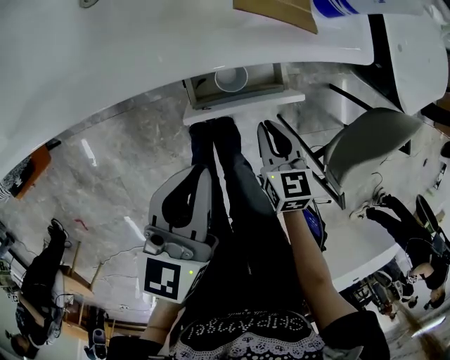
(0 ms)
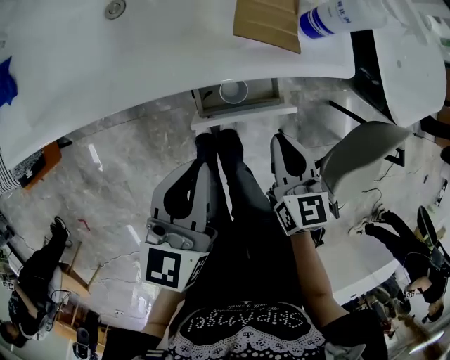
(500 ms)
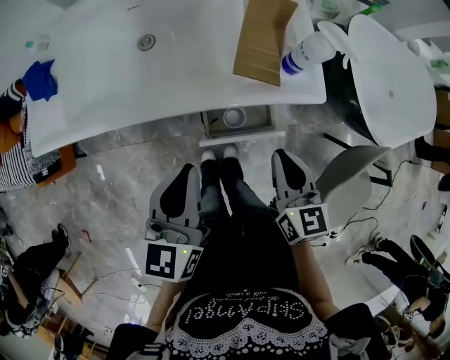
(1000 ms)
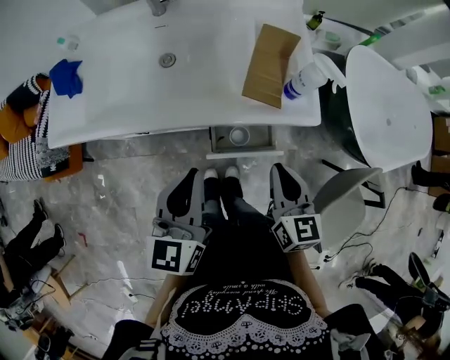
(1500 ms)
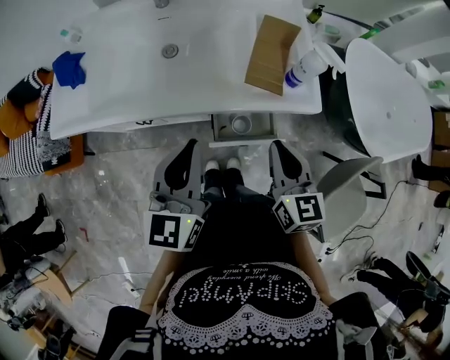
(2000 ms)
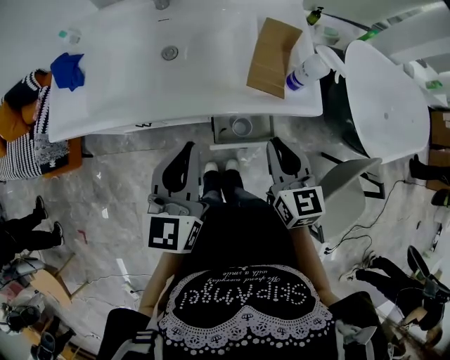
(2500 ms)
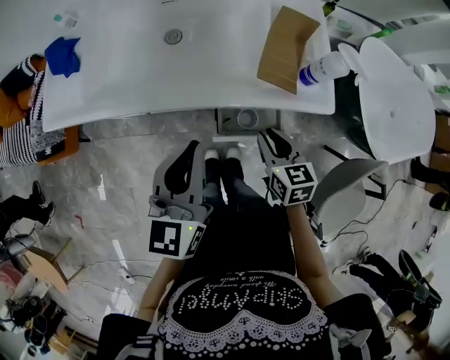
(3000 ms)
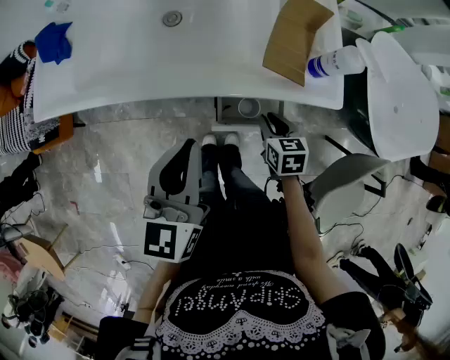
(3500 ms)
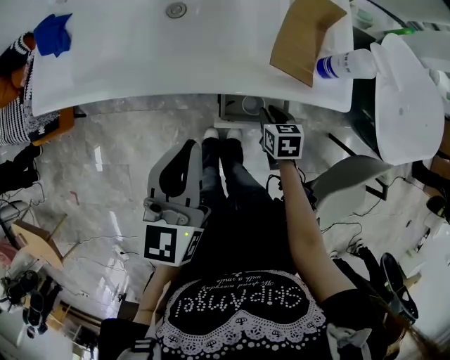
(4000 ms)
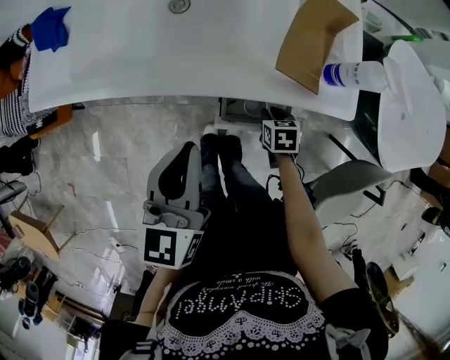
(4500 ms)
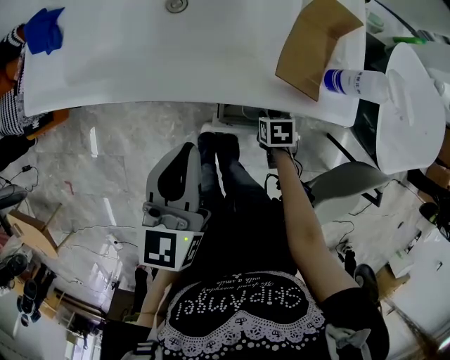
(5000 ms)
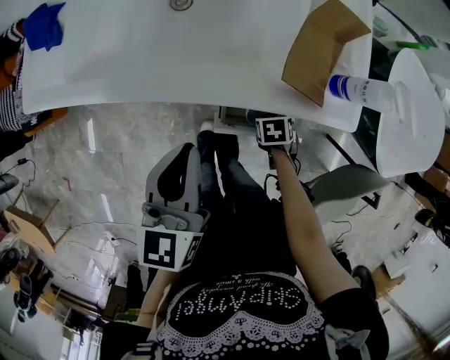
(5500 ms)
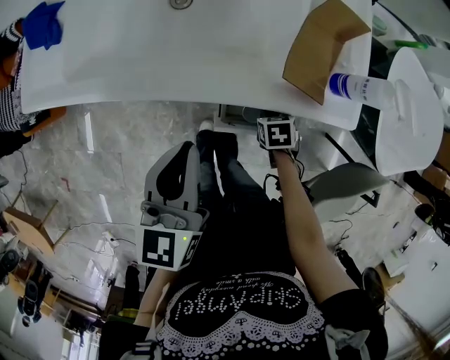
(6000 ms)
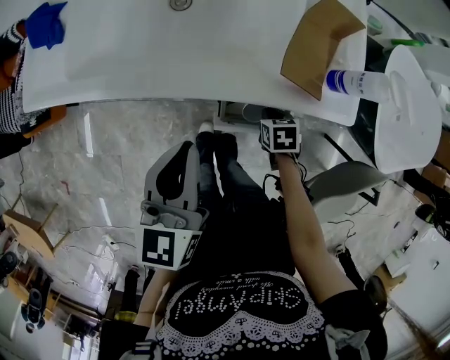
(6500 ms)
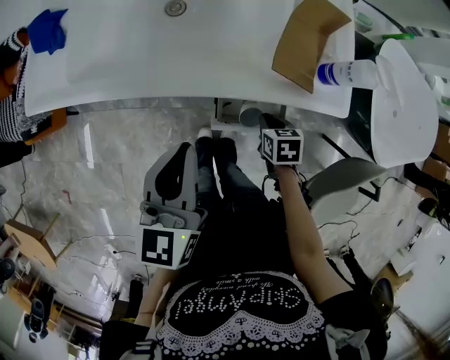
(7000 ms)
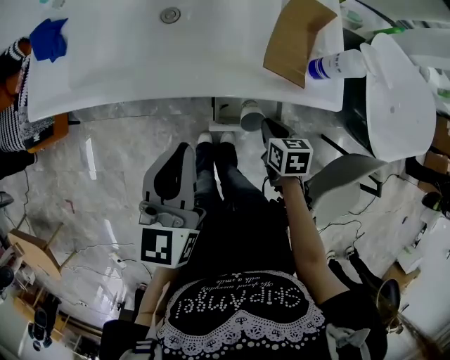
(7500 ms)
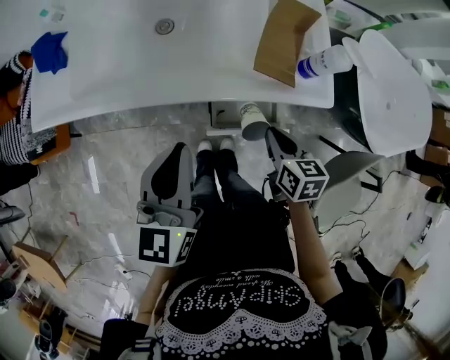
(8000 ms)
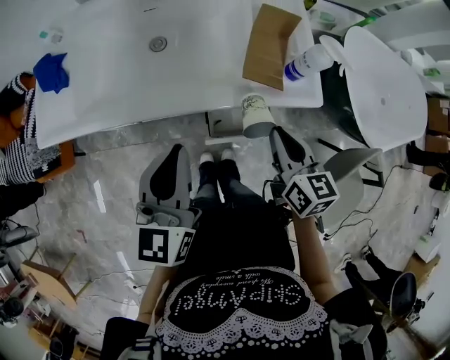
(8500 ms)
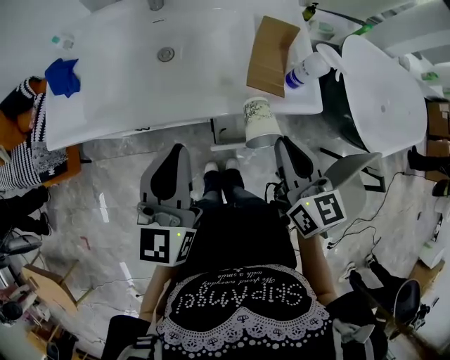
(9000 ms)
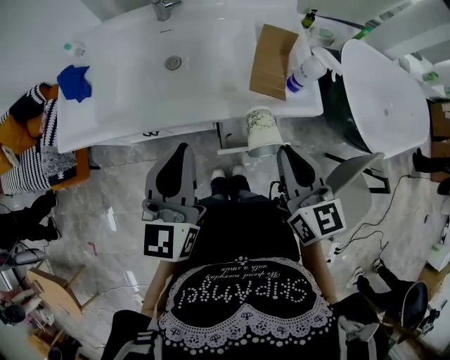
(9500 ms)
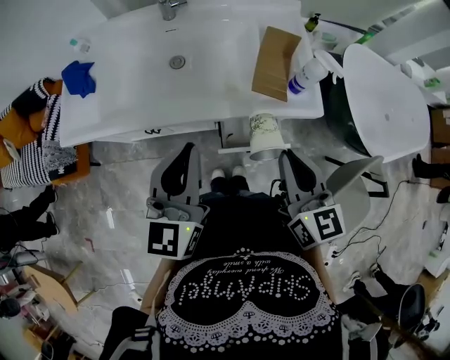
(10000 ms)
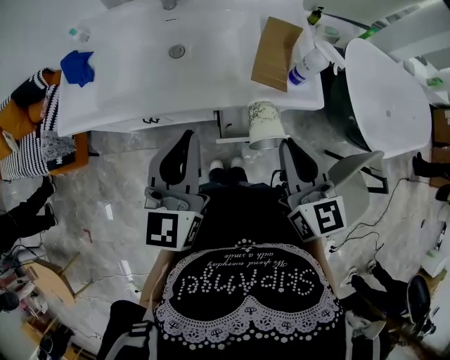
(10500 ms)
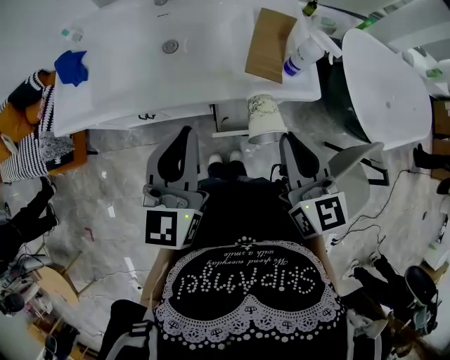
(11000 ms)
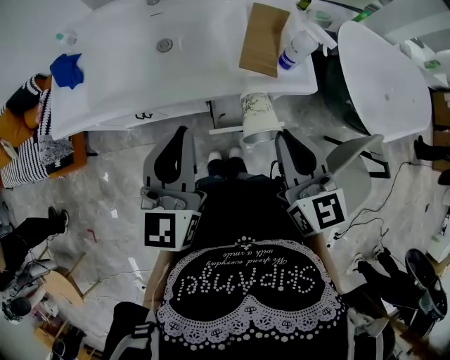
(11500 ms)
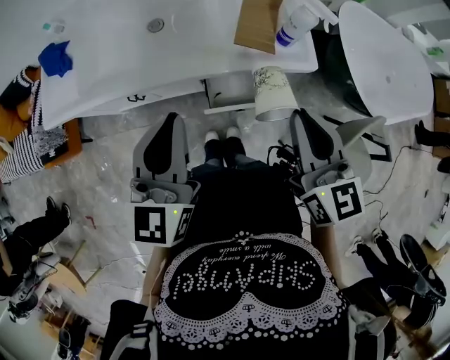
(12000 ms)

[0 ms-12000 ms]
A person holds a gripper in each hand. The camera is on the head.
0 ms to 2000 ms: The left gripper travels upward by approximately 15 cm, and swivels approximately 20 degrees. The right gripper goes approximately 30 cm upward, and turns by about 30 degrees.
2000 ms to 4000 ms: The right gripper is displaced downward by roughly 25 cm, and tilts its fingers approximately 40 degrees downward, while the left gripper goes approximately 5 cm downward.
6000 ms to 8000 ms: The right gripper travels upward by some 20 cm, and tips its fingers upward by about 30 degrees; the left gripper moves about 5 cm.
8000 ms to 10000 ms: The right gripper goes about 20 cm upward, and changes its angle by about 30 degrees. The left gripper is displaced upward by some 5 cm.
10000 ms to 12000 ms: The grippers make only small movements.

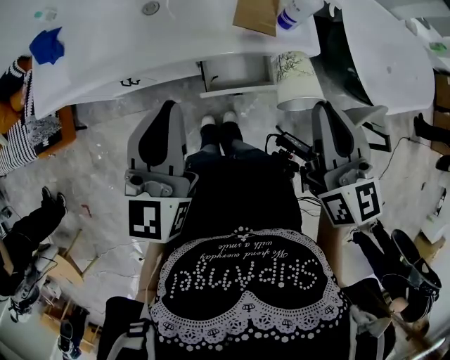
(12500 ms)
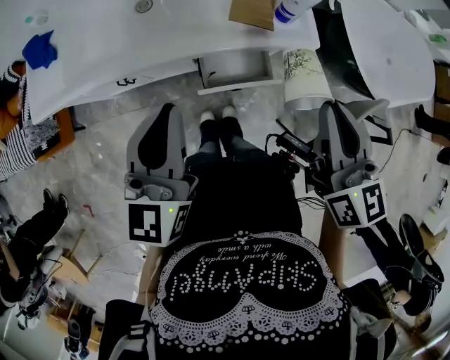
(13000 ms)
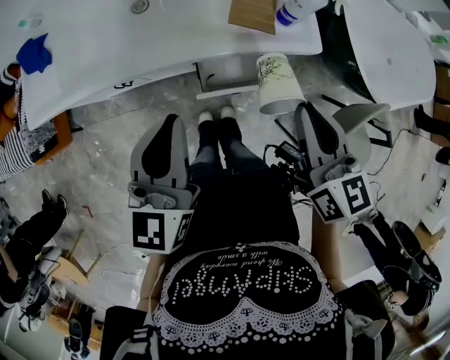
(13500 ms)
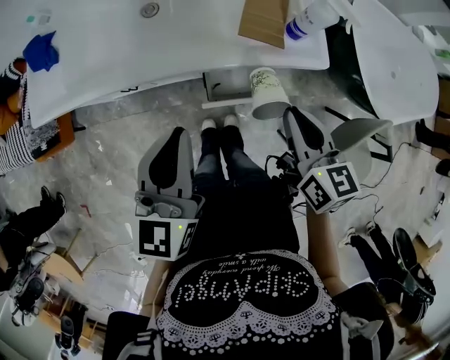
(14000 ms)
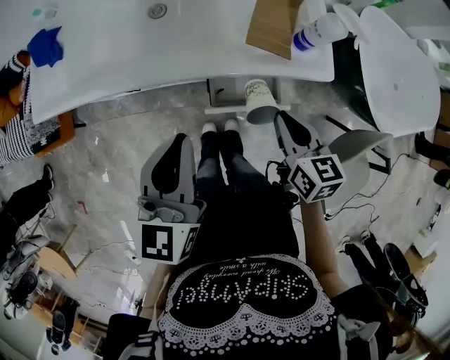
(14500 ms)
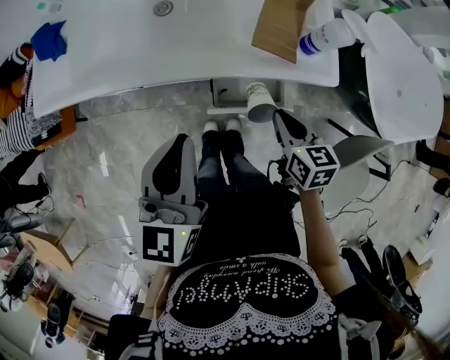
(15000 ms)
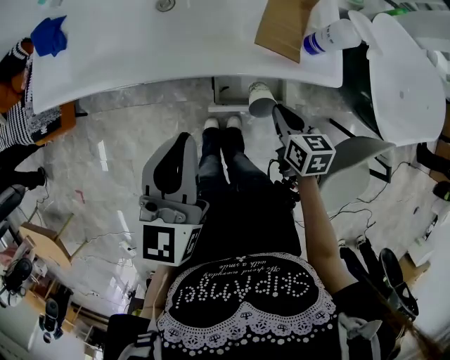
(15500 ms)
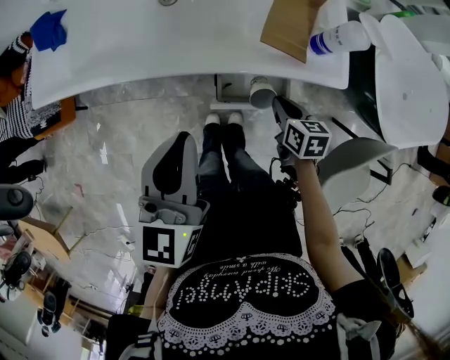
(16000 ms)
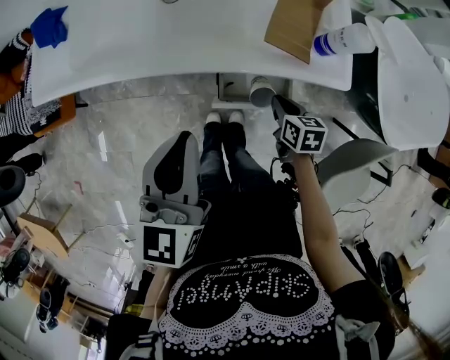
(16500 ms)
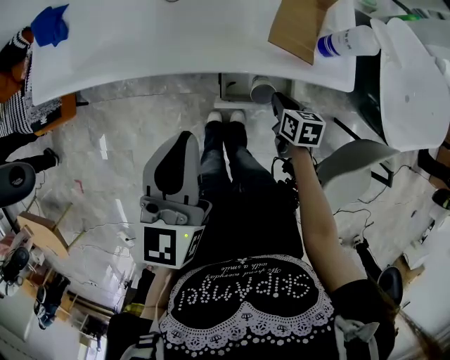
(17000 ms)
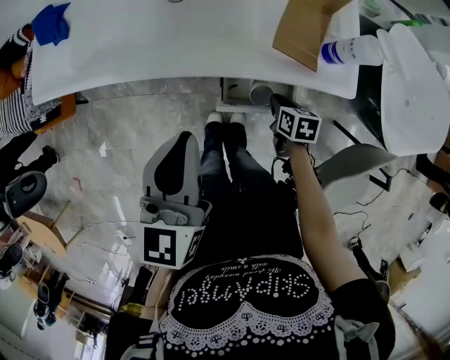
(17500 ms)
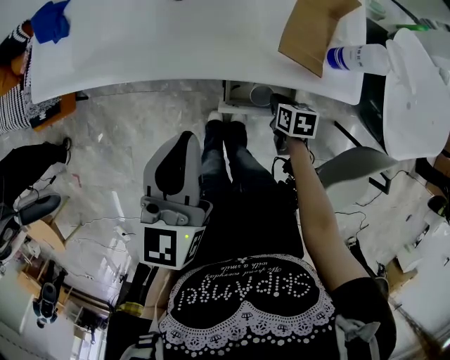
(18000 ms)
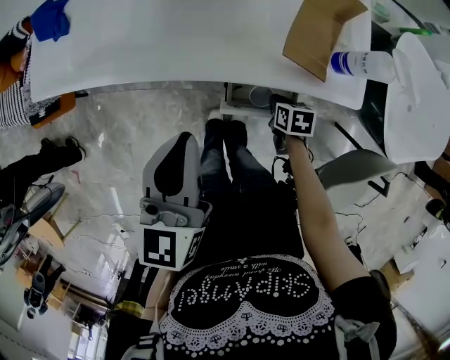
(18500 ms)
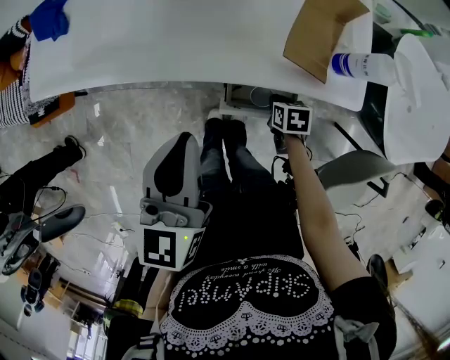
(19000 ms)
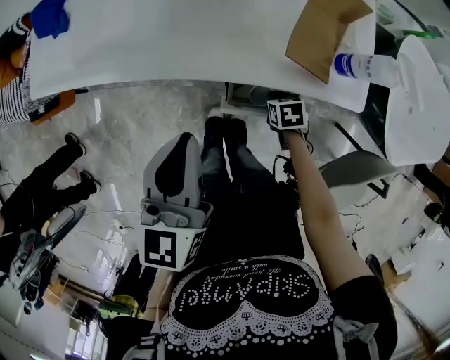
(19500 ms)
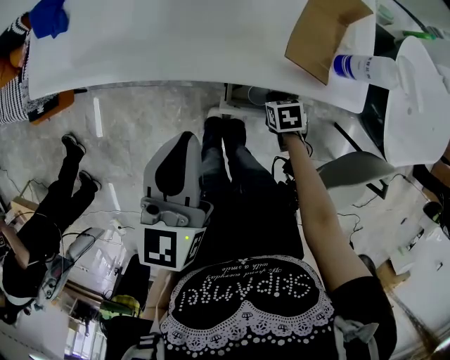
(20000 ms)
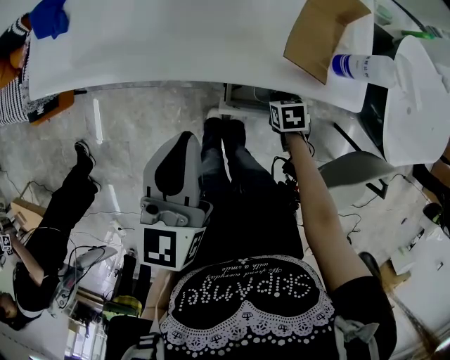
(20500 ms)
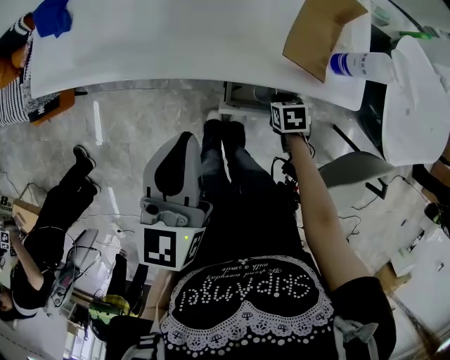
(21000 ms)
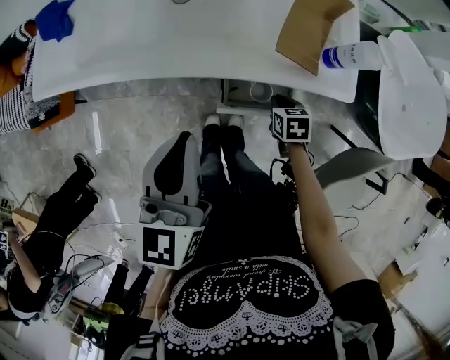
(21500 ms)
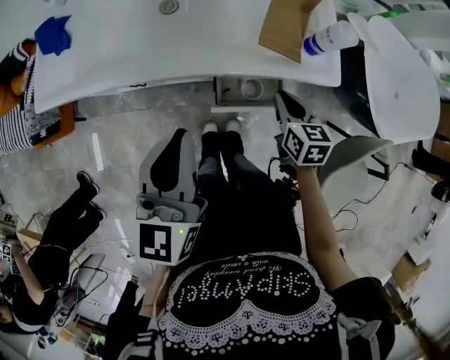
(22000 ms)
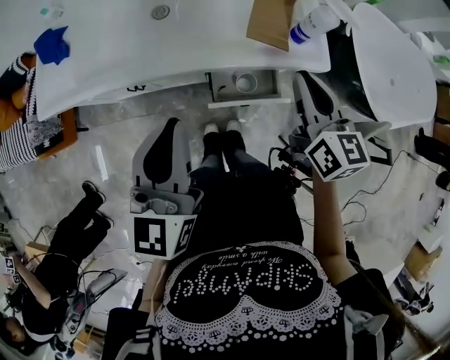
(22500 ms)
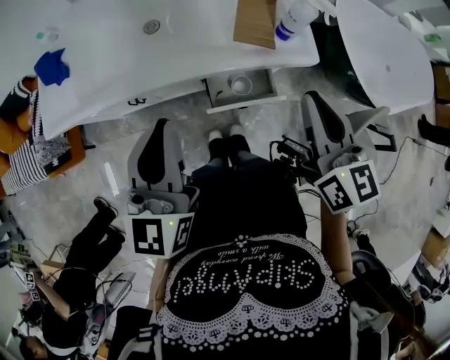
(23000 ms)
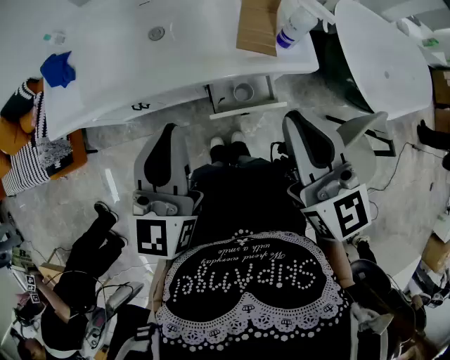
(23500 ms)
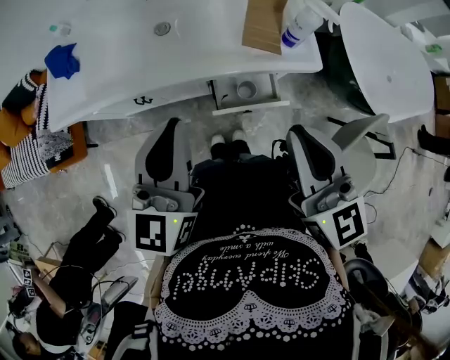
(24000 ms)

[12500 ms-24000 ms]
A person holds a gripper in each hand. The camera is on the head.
12500 ms to 14500 ms: The right gripper heads downward, covering about 15 cm, and changes its angle by about 20 degrees.
14500 ms to 16500 ms: The right gripper travels downward by about 15 cm.
16500 ms to 18500 ms: The right gripper goes some 5 cm downward.
18500 ms to 20000 ms: The grippers stay close to where they were, moving slightly.
20000 ms to 22000 ms: The left gripper shifts by approximately 5 cm. Meanwhile the right gripper travels upward by about 20 cm, and tilts its fingers roughly 30 degrees upward.
22000 ms to 24000 ms: The left gripper moves upward, approximately 5 cm. The right gripper is displaced upward and backward by roughly 30 cm, and tips its fingers upward by some 30 degrees.

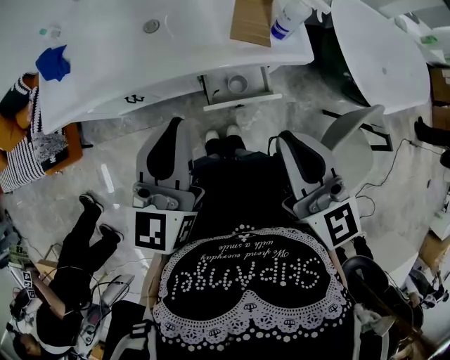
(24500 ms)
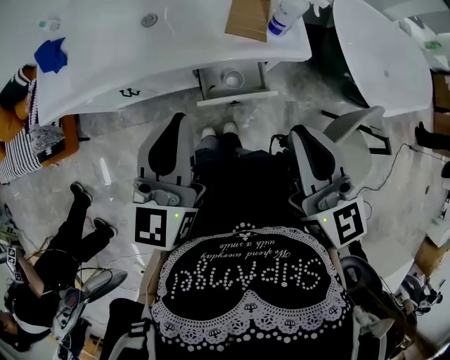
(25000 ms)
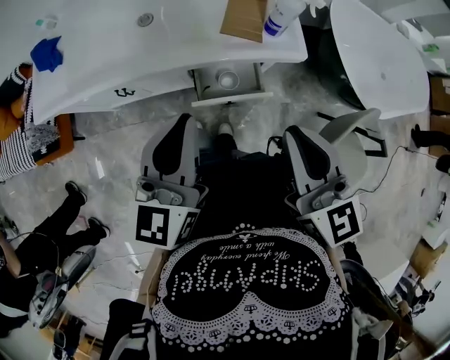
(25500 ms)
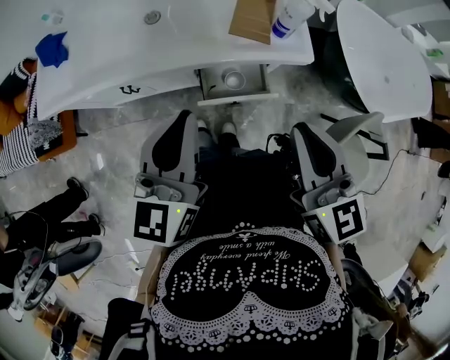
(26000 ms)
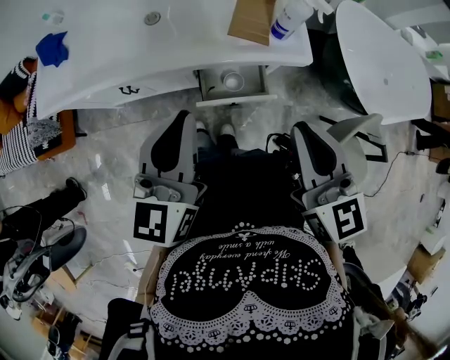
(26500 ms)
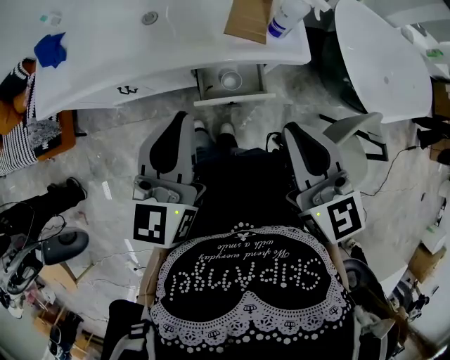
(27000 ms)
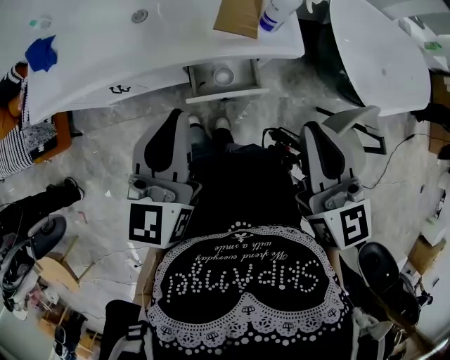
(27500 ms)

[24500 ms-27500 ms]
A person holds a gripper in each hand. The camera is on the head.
24500 ms to 26000 ms: The grippers move only a little.
26000 ms to 27500 ms: The grippers make only small movements.
